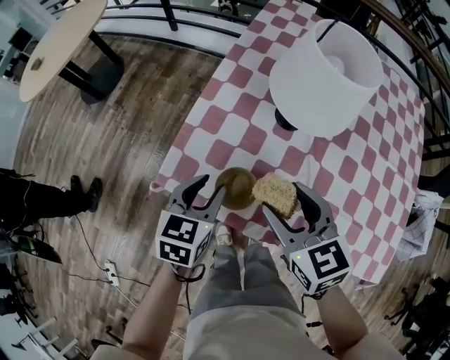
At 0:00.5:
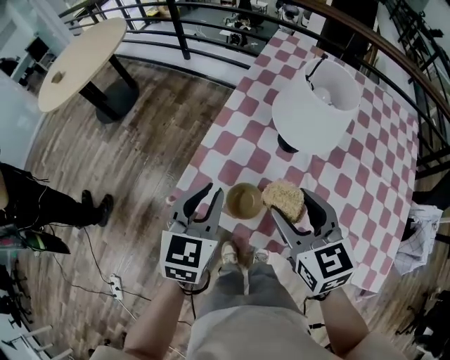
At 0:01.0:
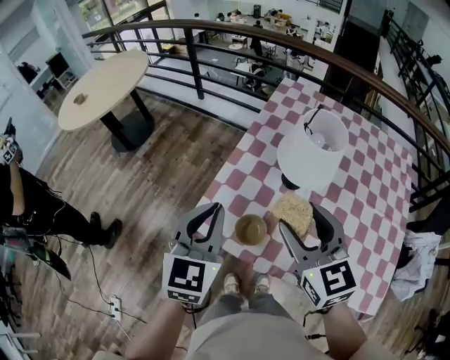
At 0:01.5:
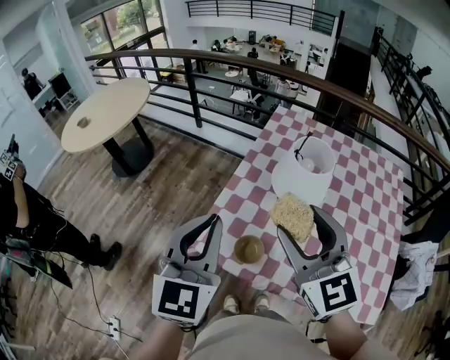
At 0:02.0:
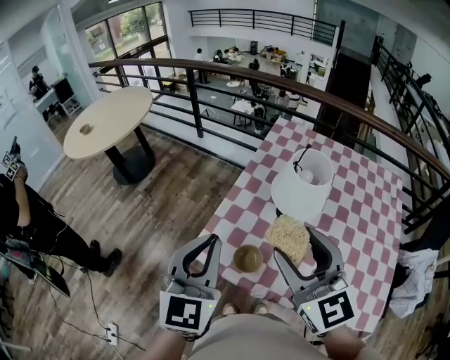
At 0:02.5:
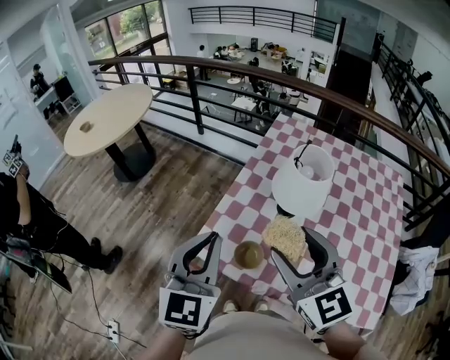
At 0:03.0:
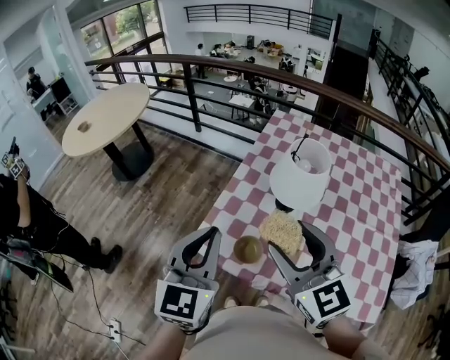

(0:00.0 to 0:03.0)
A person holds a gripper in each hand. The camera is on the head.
0:00.0 - 0:01.5: The grippers both shift upward by approximately 30 cm. The right gripper rotates some 30 degrees, while the left gripper points its fingers roughly 30 degrees further upward, and closes up.
0:01.5 - 0:03.0: The grippers stay close to where they were, moving slightly.

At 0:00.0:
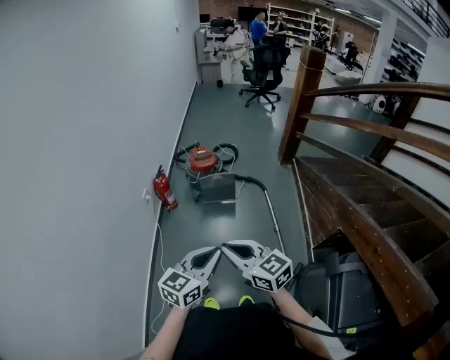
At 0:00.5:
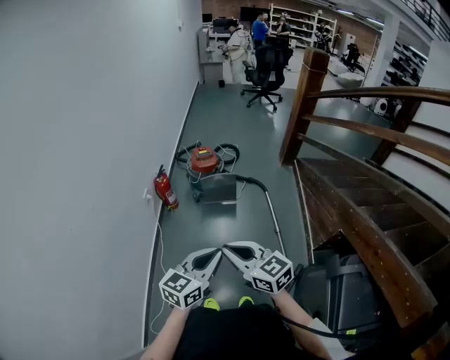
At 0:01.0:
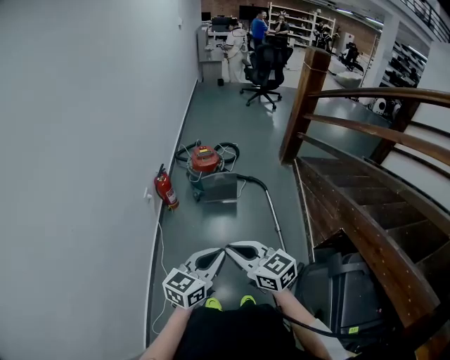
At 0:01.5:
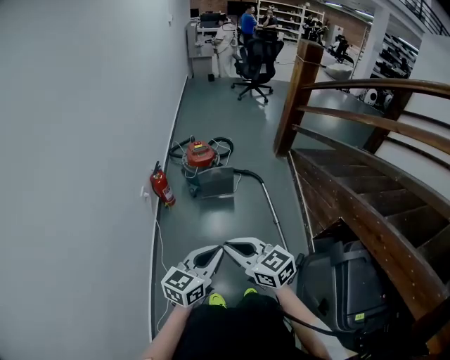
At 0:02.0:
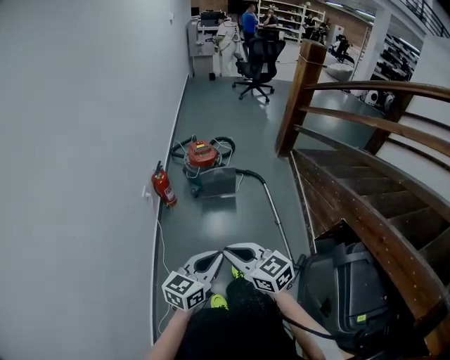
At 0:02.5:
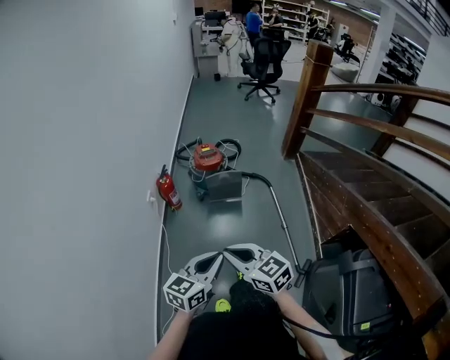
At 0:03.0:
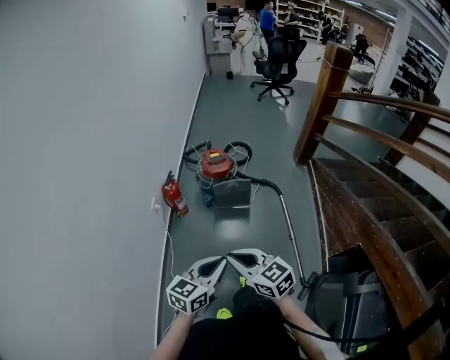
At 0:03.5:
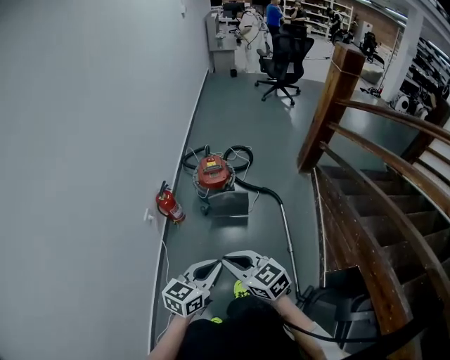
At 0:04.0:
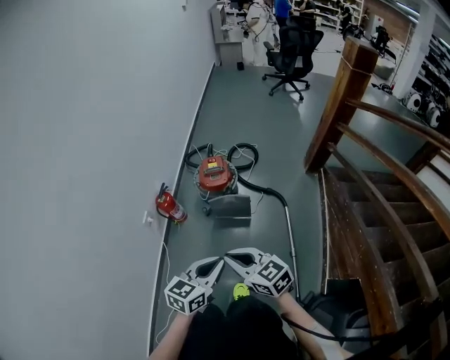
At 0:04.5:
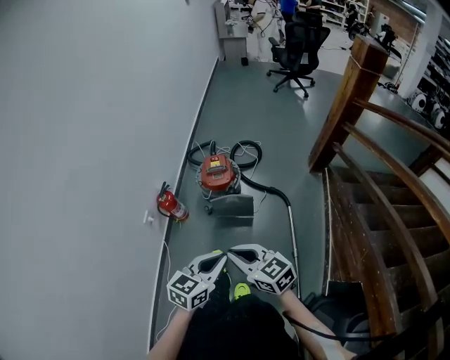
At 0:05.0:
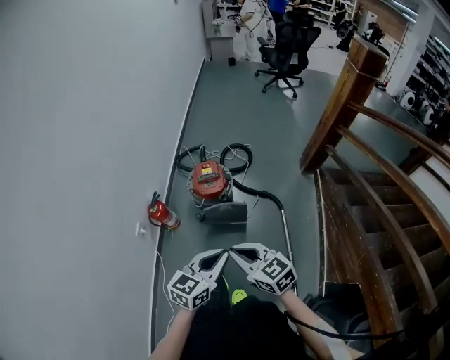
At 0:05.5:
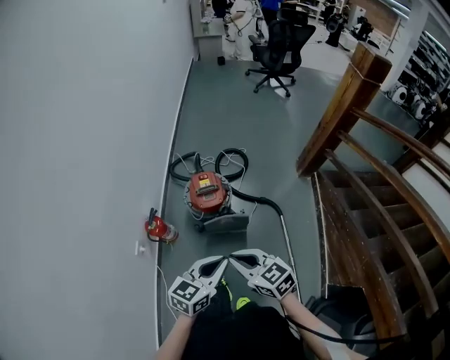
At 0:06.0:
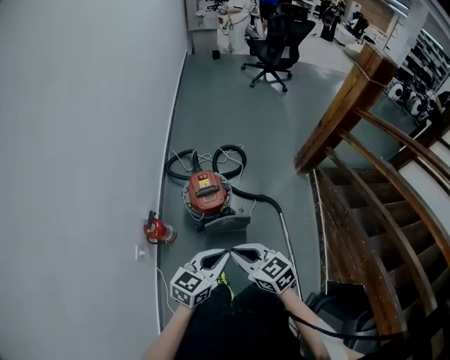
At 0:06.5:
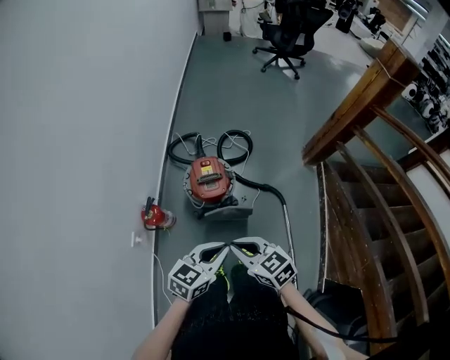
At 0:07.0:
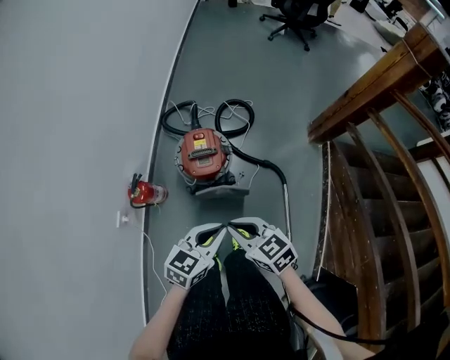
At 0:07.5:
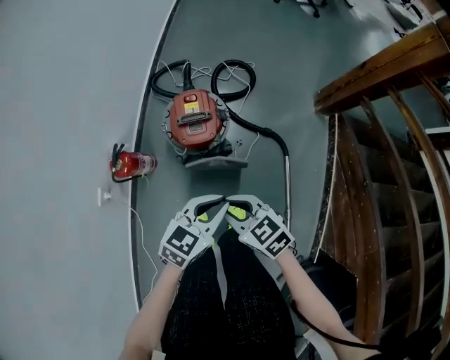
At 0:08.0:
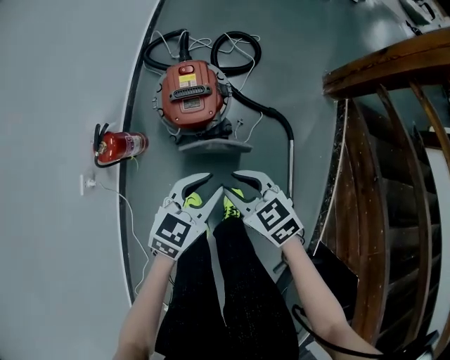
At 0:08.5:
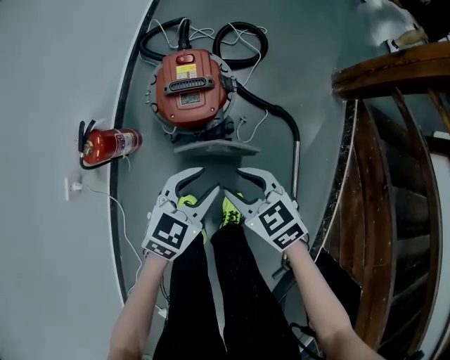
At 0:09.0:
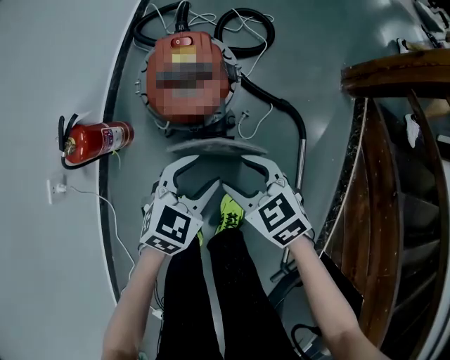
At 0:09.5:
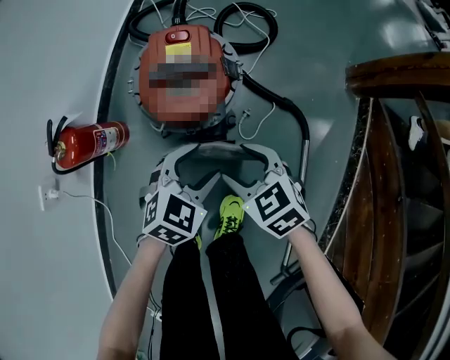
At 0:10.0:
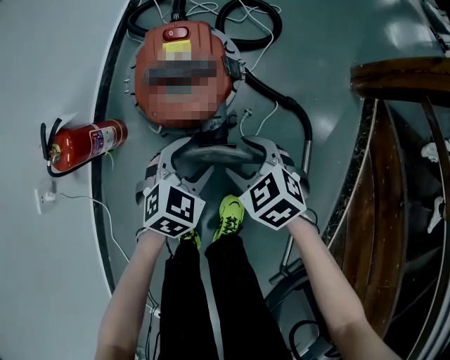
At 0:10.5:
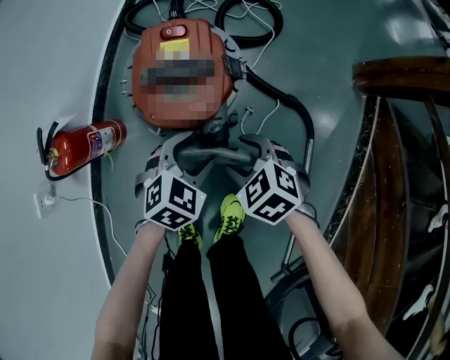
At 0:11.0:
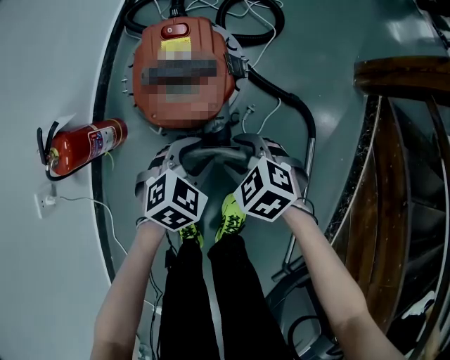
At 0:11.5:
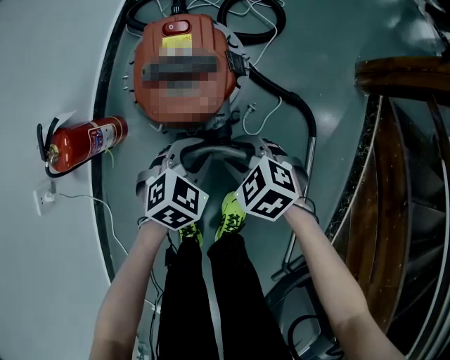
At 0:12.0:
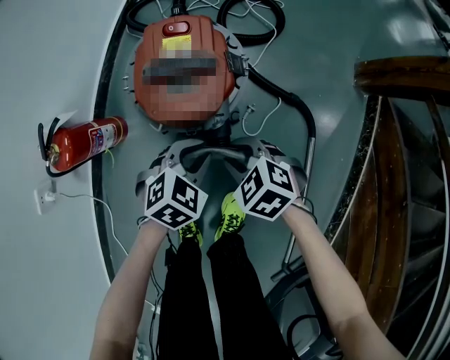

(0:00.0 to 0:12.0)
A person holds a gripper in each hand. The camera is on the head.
0:00.0 - 0:02.0: The grippers both shift to the left by approximately 5 cm.
0:02.0 - 0:04.0: The two grippers go roughly 25 cm forward.
0:04.0 - 0:06.0: Both grippers travel together forward, some 20 cm.
0:06.0 - 0:08.0: Both grippers move downward, about 25 cm. The left gripper opens, while the right gripper opens.
0:08.0 - 0:10.0: The right gripper travels downward and forward by some 25 cm, changes its angle by about 20 degrees, and opens up. Meanwhile the left gripper goes some 25 cm downward, changes its angle by approximately 20 degrees, and opens up.
0:10.0 - 0:12.0: The left gripper closes. Meanwhile the right gripper closes up.

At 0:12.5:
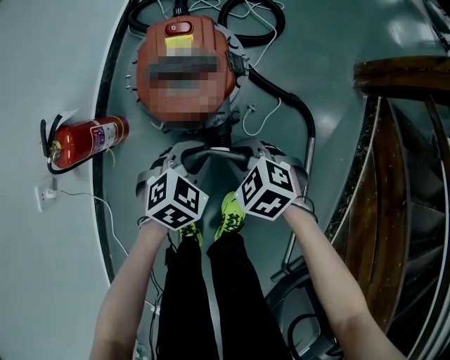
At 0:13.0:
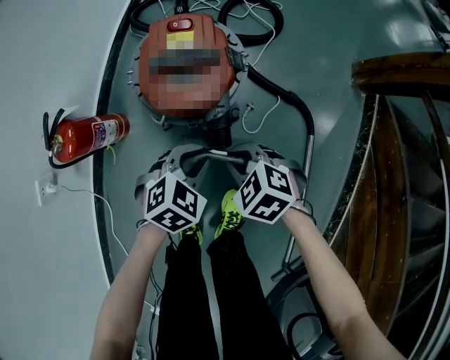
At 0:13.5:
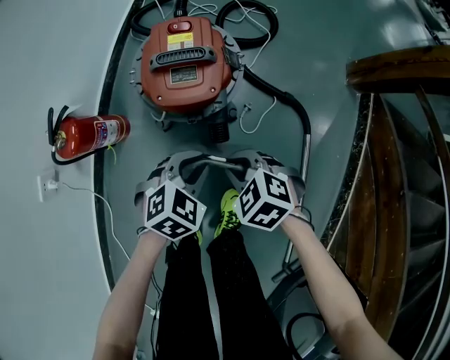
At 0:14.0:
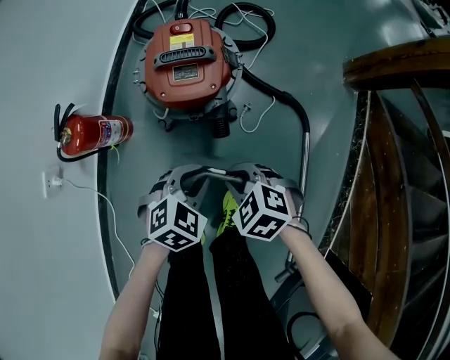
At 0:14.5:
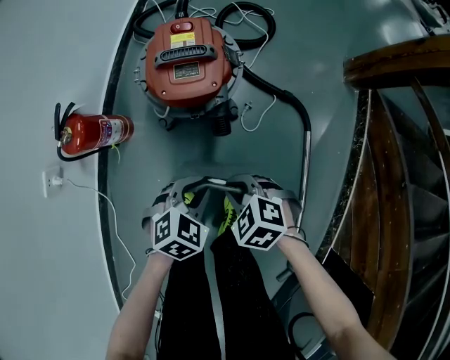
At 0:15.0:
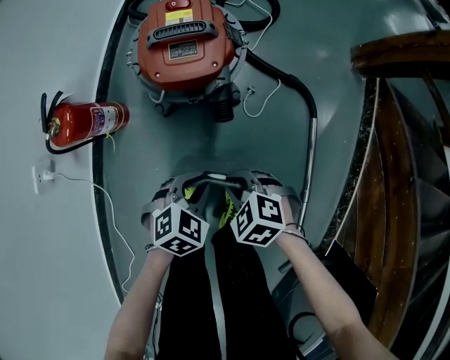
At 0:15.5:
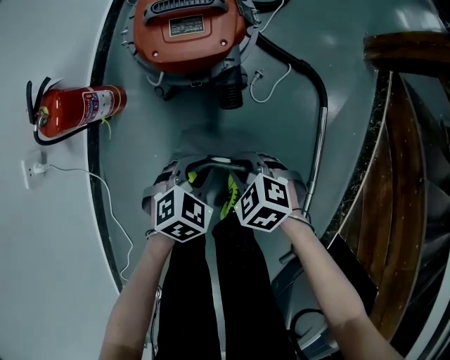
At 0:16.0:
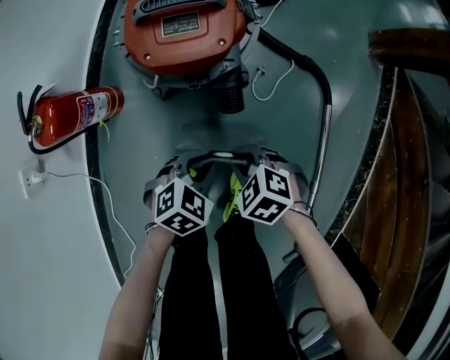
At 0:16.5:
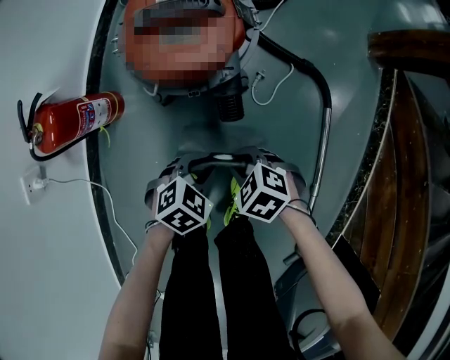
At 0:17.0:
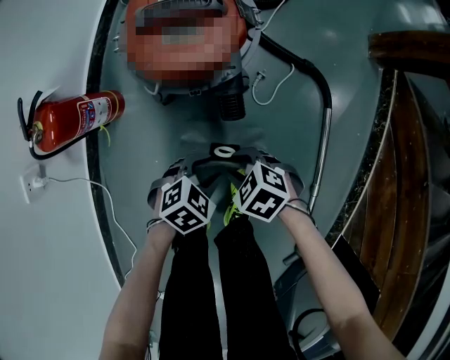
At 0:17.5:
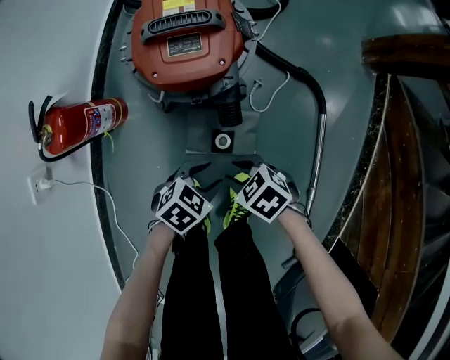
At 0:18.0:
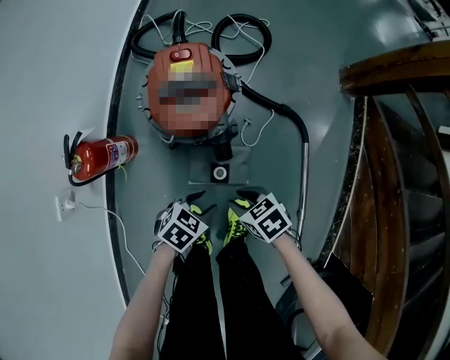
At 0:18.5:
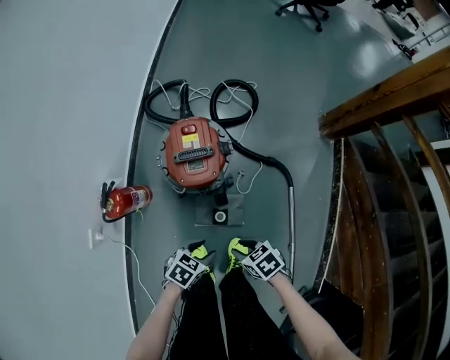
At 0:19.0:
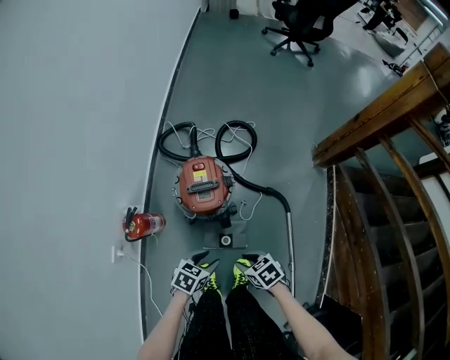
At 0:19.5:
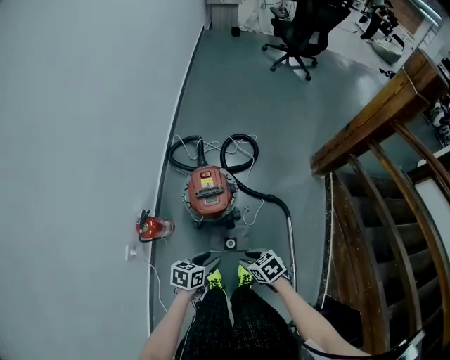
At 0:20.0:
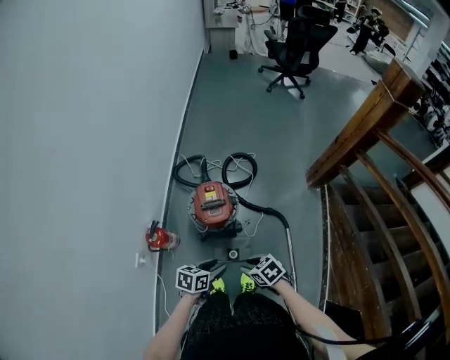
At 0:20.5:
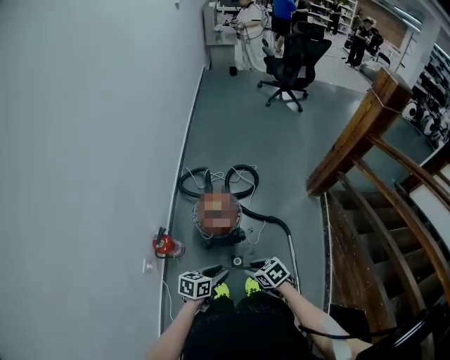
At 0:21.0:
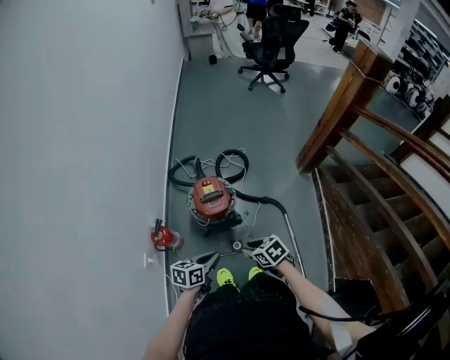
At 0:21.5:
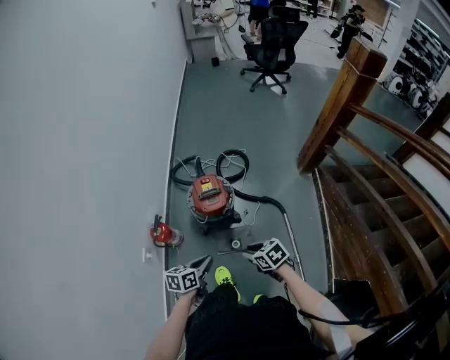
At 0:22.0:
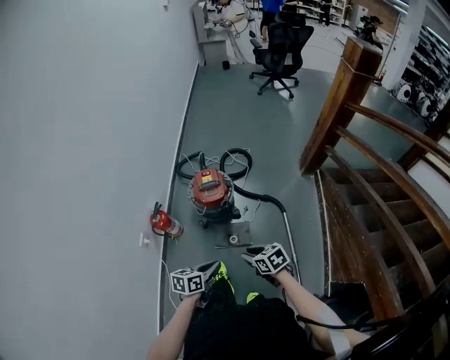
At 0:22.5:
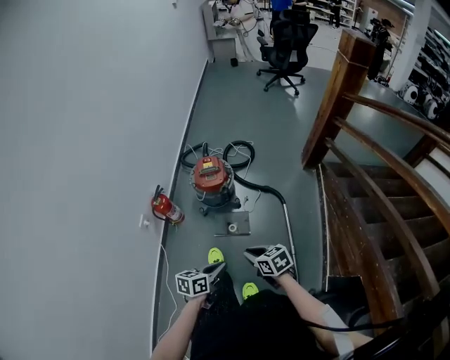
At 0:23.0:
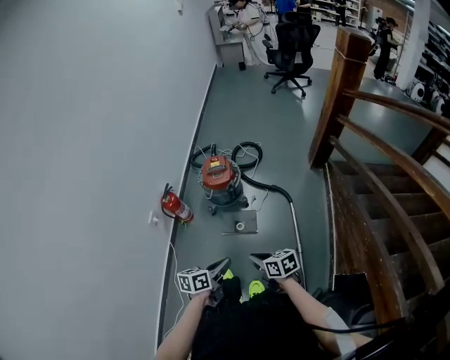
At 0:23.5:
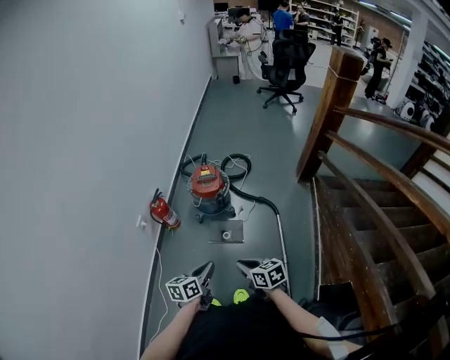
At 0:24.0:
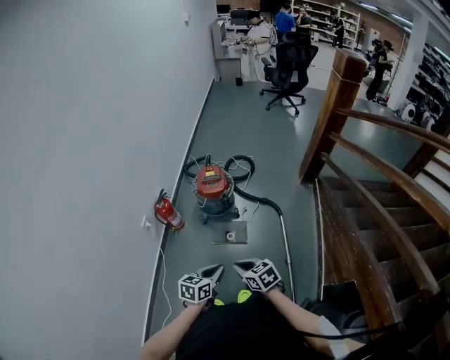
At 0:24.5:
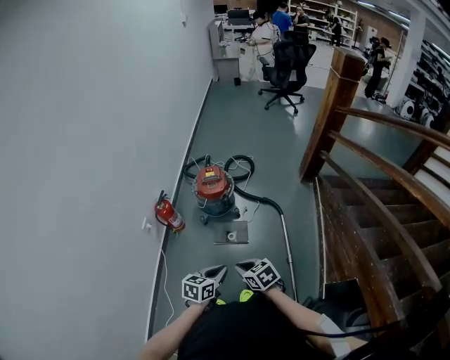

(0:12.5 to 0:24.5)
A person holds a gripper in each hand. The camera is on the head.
0:12.5 - 0:14.5: The right gripper ends up some 15 cm from where it was, while the left gripper moves roughly 15 cm.
0:14.5 - 0:16.5: Both grippers travel together downward, roughly 10 cm.
0:16.5 - 0:18.5: Both grippers move upward, some 20 cm. The left gripper opens up; the right gripper changes its angle by about 30 degrees.
0:18.5 - 0:20.5: Both grippers move upward, some 25 cm. The left gripper turns by about 30 degrees.
0:20.5 - 0:22.5: The left gripper moves about 25 cm, and closes its fingers. Meanwhile the right gripper changes place by approximately 20 cm.
0:22.5 - 0:24.5: The right gripper travels backward by approximately 5 cm.
